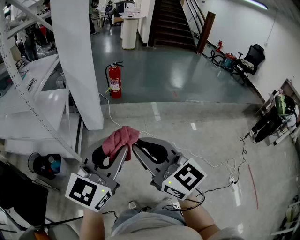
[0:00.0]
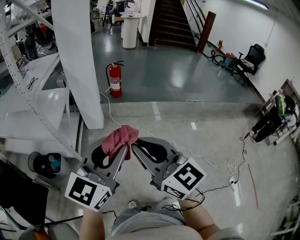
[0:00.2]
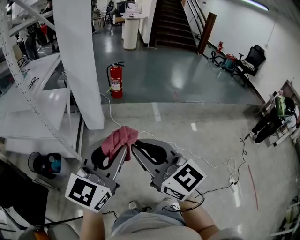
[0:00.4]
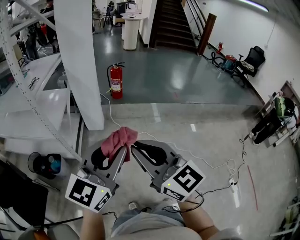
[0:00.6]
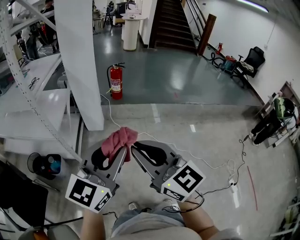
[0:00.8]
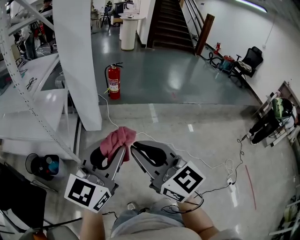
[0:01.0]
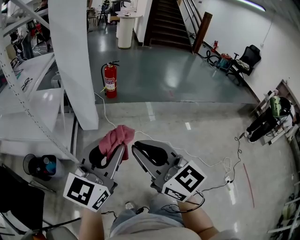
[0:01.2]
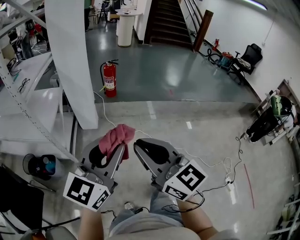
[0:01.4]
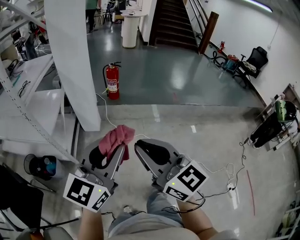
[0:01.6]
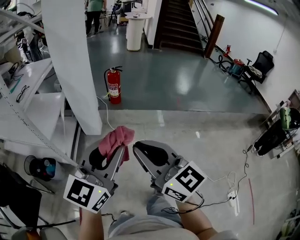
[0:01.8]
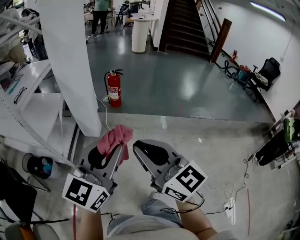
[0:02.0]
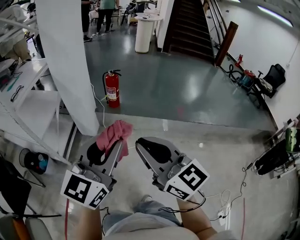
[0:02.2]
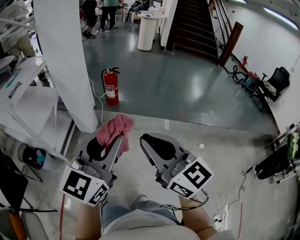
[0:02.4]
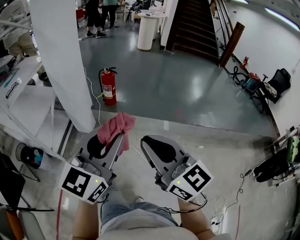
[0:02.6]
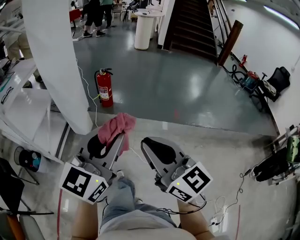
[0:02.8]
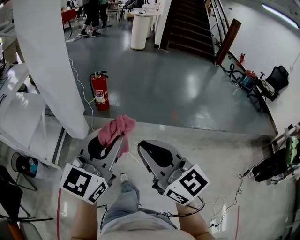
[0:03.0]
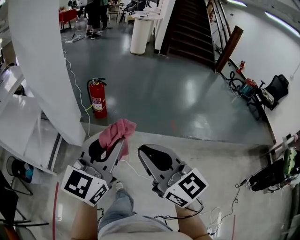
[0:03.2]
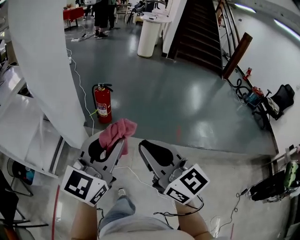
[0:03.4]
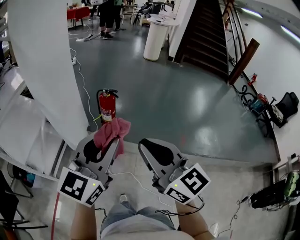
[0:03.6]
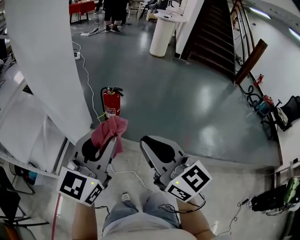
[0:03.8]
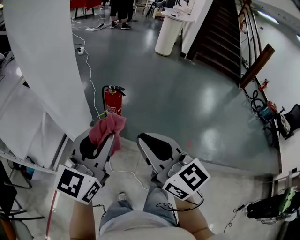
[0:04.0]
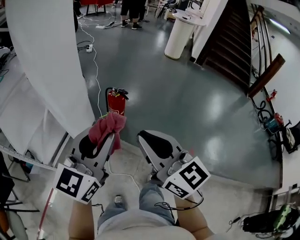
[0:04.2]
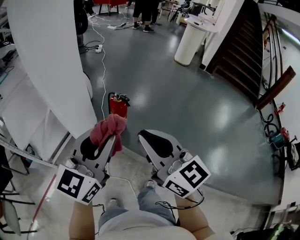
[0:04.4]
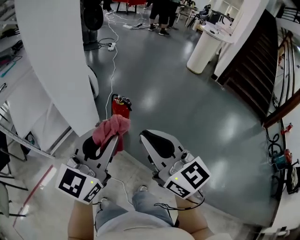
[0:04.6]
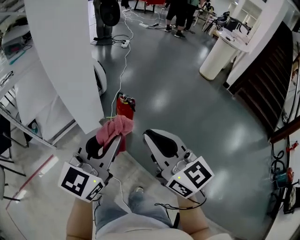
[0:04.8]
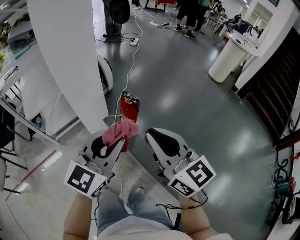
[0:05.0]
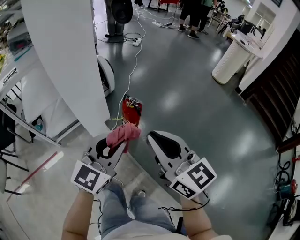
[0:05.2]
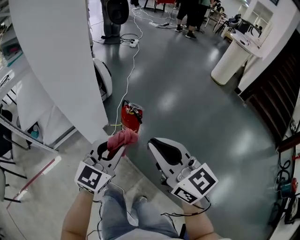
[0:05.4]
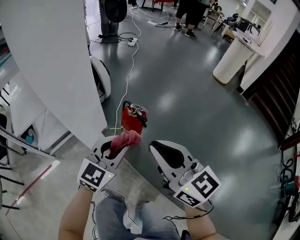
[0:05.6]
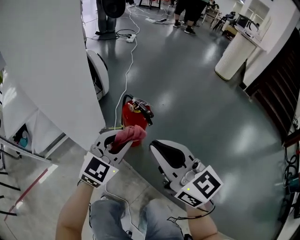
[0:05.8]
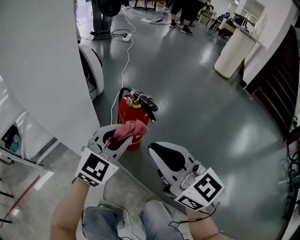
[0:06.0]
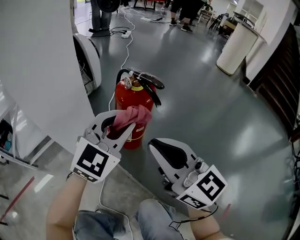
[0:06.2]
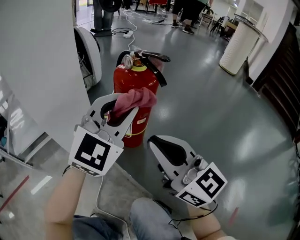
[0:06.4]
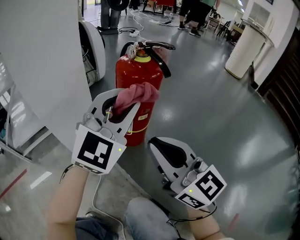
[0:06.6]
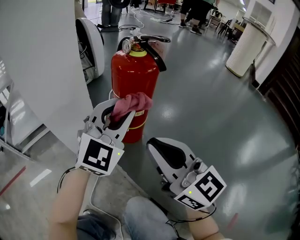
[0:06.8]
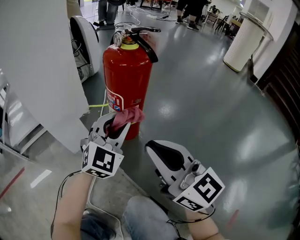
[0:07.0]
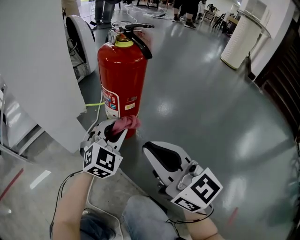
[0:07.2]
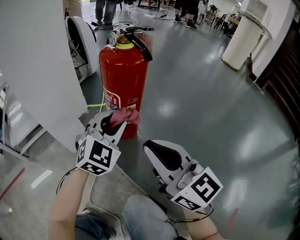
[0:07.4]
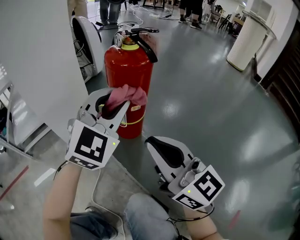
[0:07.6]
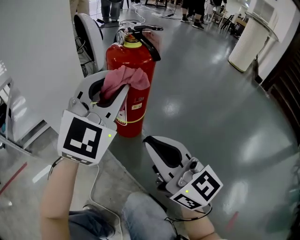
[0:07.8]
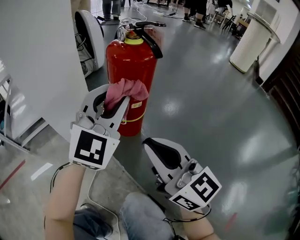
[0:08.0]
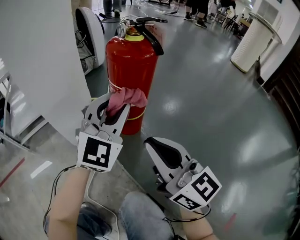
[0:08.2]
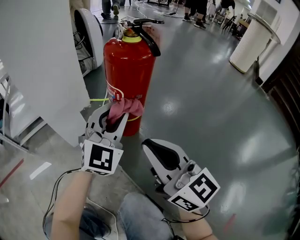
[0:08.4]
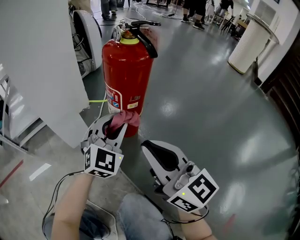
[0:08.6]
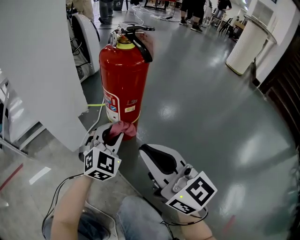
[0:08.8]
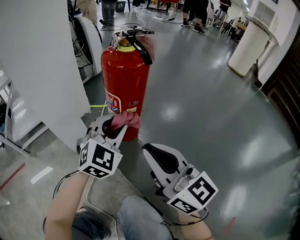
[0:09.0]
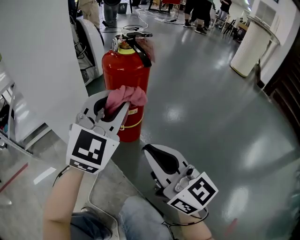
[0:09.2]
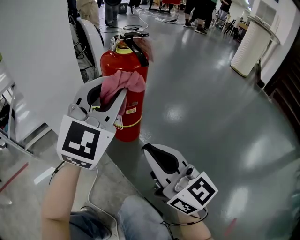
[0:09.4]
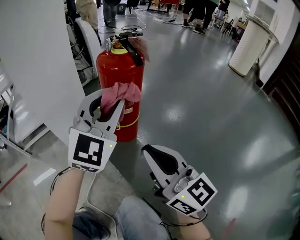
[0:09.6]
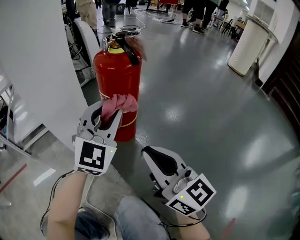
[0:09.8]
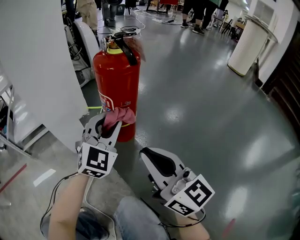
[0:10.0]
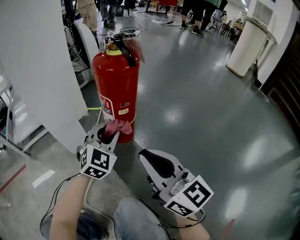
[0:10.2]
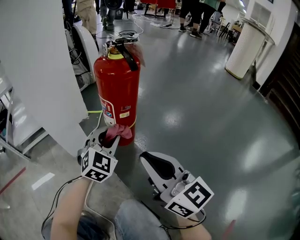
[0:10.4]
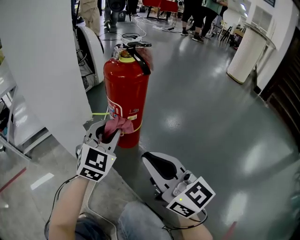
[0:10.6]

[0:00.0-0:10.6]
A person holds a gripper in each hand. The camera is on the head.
0:00.0 to 0:01.6: Both grippers move forward, approximately 5 cm.
0:01.6 to 0:03.0: The two grippers go about 35 cm to the right and forward.
0:03.0 to 0:04.6: The two grippers travel together, approximately 40 cm. The left gripper turns by approximately 30 degrees, while the right gripper rotates approximately 30 degrees.
0:04.6 to 0:06.0: The two grippers go roughly 40 cm downward and forward. The left gripper swivels approximately 30 degrees.
0:06.0 to 0:07.6: The right gripper shifts some 20 cm downward, while the left gripper travels downward by roughly 10 cm, and turns by roughly 20 degrees.
0:07.6 to 0:09.0: The left gripper moves up and down over about 20 cm, changing direction 2 times.
0:09.0 to 0:10.6: The left gripper goes up and down, approximately 20 cm each way, reversing 2 times.

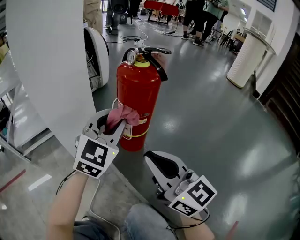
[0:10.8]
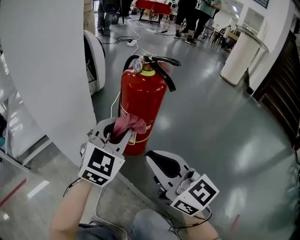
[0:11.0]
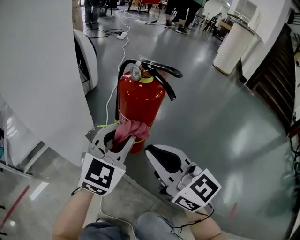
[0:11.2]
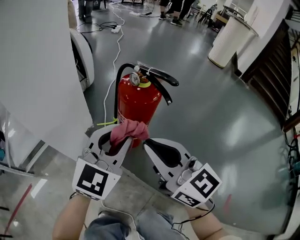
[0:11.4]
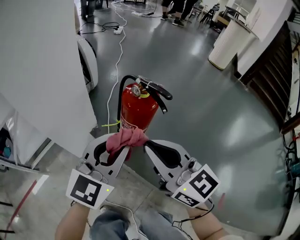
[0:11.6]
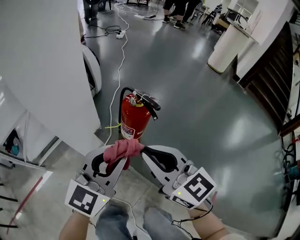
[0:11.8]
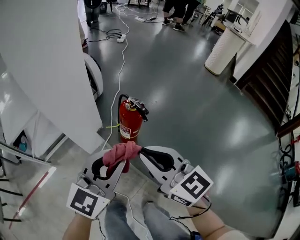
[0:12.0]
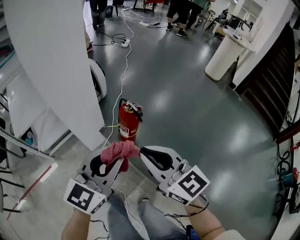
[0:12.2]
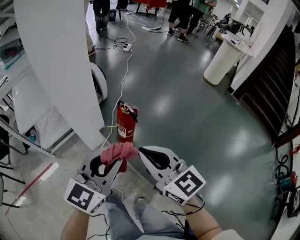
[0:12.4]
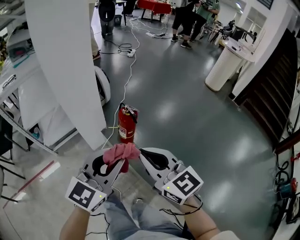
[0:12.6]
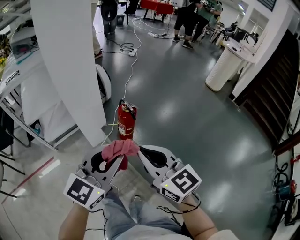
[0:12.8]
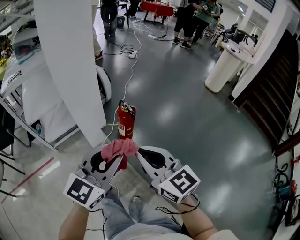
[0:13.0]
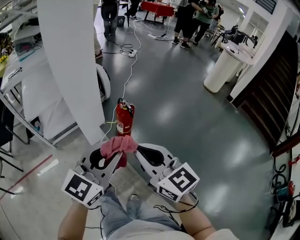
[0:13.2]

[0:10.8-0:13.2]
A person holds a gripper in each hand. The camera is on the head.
0:10.8 to 0:12.0: The left gripper shifts about 35 cm upward and backward, and changes its angle by some 30 degrees; the right gripper shifts some 30 cm upward.
0:12.0 to 0:13.2: Both grippers move upward and backward, approximately 20 cm.

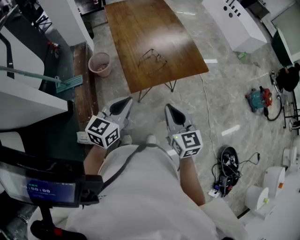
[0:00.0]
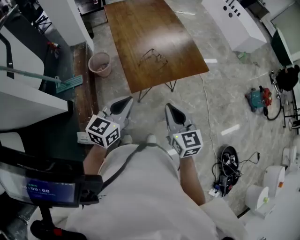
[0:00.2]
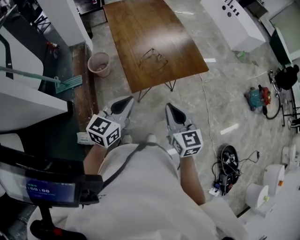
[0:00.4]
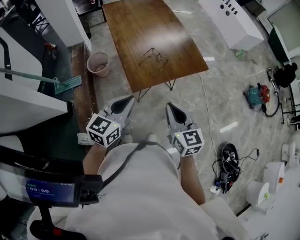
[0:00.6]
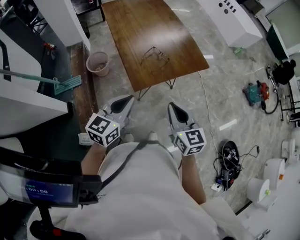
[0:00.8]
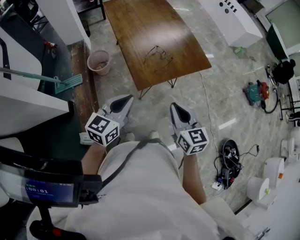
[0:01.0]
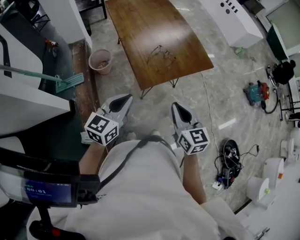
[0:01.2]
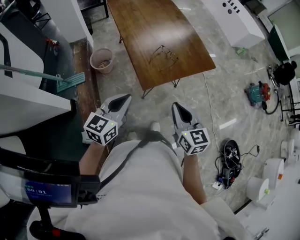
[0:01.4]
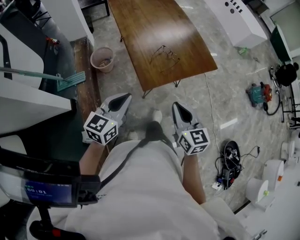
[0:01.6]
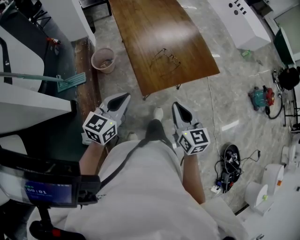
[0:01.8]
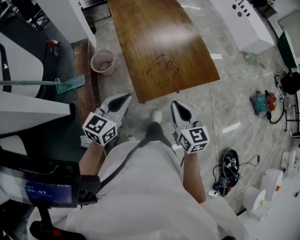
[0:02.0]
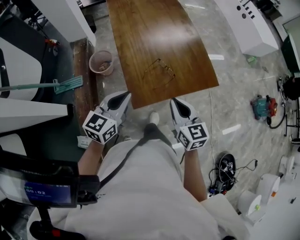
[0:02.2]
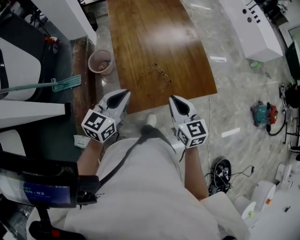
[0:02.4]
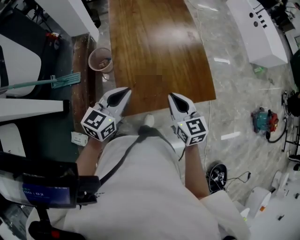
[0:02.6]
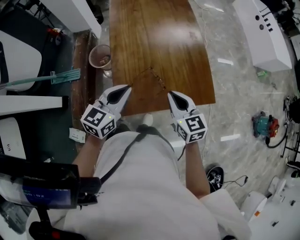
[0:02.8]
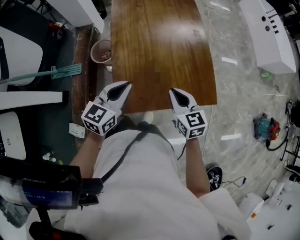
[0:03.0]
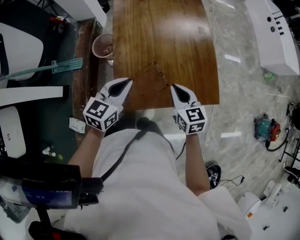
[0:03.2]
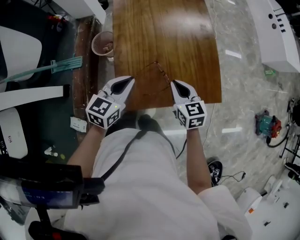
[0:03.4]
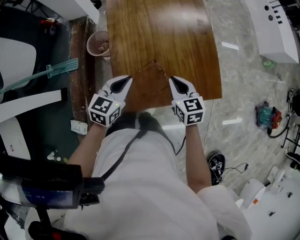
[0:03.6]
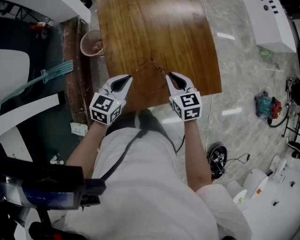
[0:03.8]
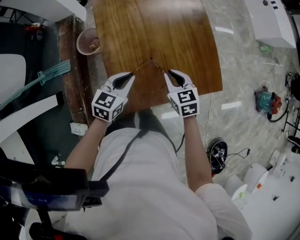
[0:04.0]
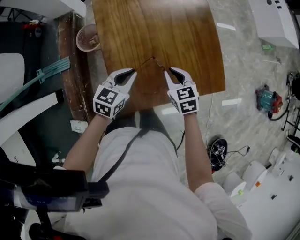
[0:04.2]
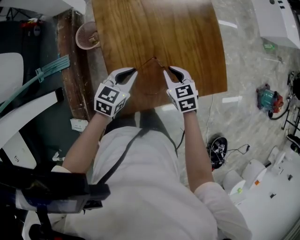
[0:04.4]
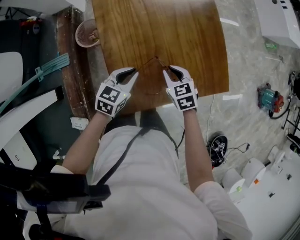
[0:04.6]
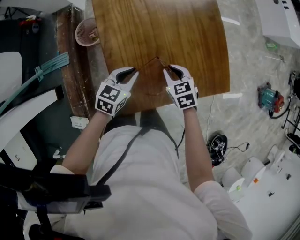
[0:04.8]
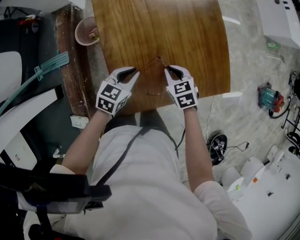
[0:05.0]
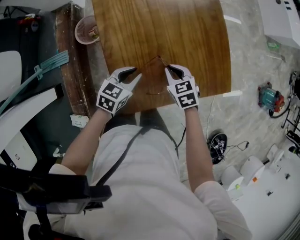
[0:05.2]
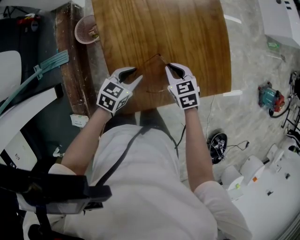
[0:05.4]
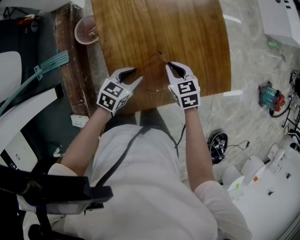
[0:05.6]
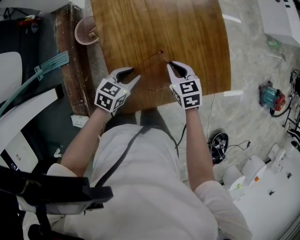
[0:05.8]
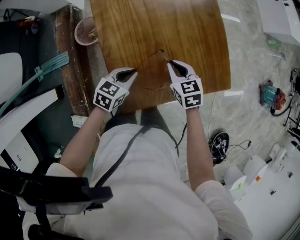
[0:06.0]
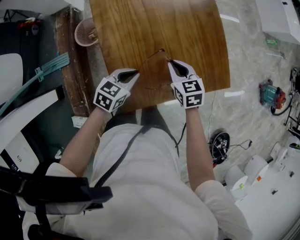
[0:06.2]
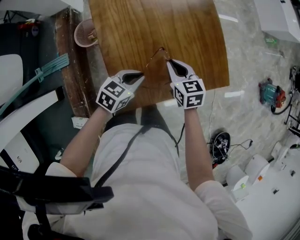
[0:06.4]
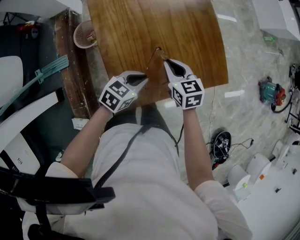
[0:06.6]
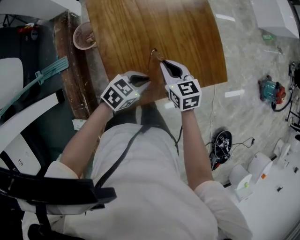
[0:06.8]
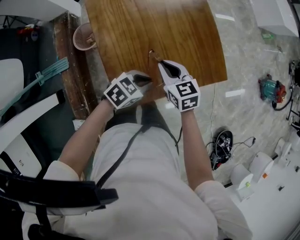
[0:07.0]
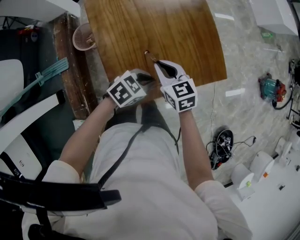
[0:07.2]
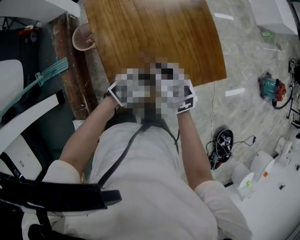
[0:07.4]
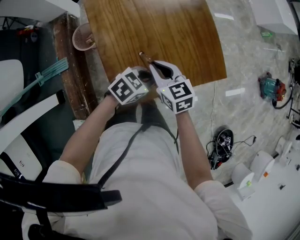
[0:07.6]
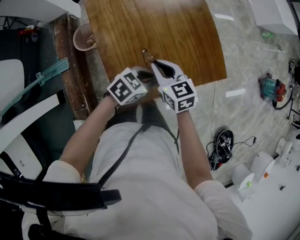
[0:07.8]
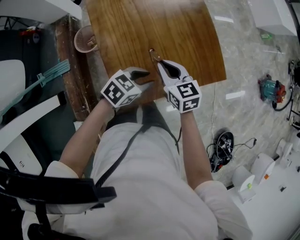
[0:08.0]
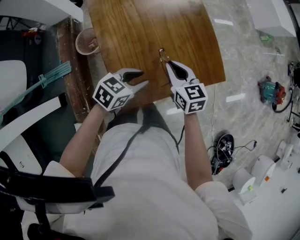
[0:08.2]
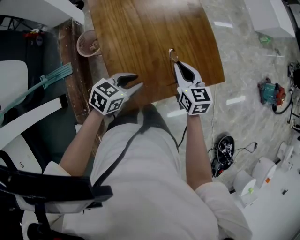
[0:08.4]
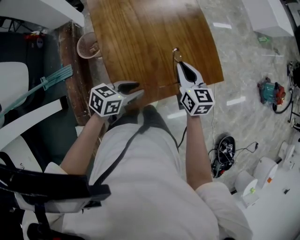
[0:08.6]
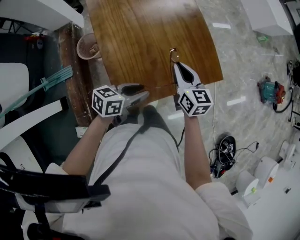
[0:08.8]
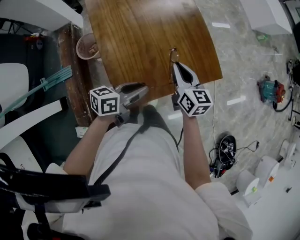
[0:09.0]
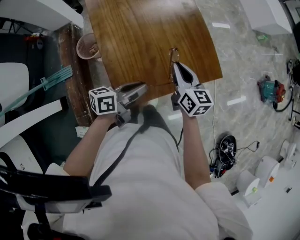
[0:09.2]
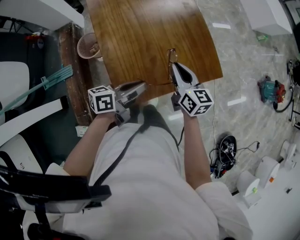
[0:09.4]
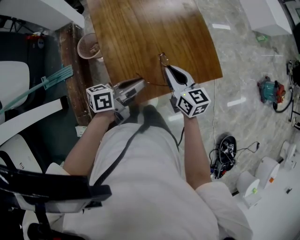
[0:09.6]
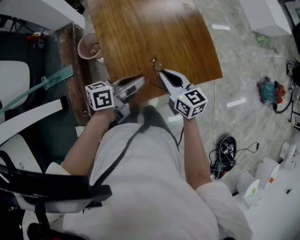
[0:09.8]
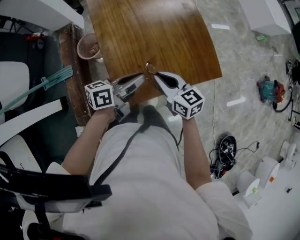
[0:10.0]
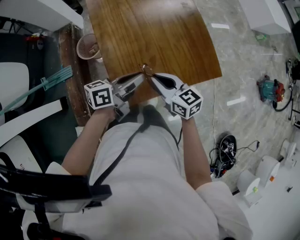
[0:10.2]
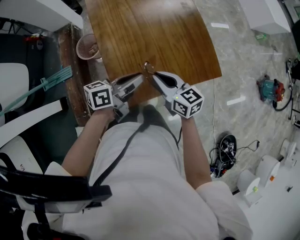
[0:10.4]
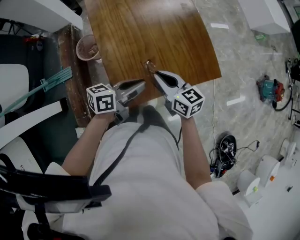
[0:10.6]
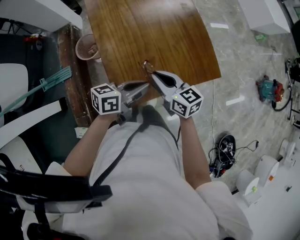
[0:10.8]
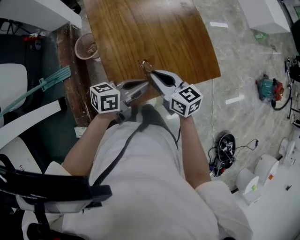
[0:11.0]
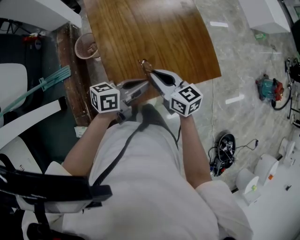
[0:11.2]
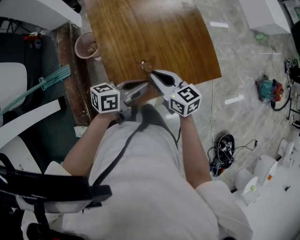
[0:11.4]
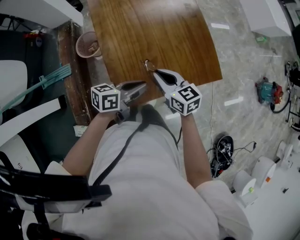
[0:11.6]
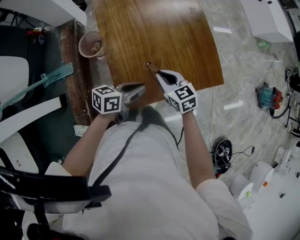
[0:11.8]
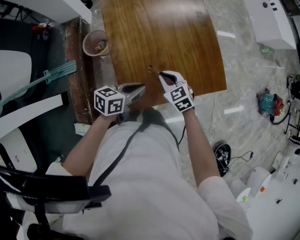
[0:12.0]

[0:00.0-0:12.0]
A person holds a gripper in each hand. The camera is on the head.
0:00.0 to 0:01.6: Both grippers move to the left, some 10 cm.
0:01.6 to 0:03.0: The two grippers go approximately 35 cm forward and to the right. The right gripper turns by about 20 degrees.
0:03.0 to 0:04.4: The grippers both shift downward and forward by approximately 20 cm. The right gripper rotates approximately 20 degrees.
0:04.4 to 0:06.0: The left gripper opens and closes again.
0:06.0 to 0:07.6: The left gripper is displaced to the right by approximately 10 cm, and turns by roughly 30 degrees, while the right gripper travels upward and backward by about 10 cm.
0:07.6 to 0:09.0: The right gripper is displaced to the right by some 10 cm, and turns by about 20 degrees. Meanwhile the left gripper heads upward, covering approximately 5 cm, and rotates some 40 degrees.
0:09.0 to 0:10.4: The right gripper moves backward and to the left, some 10 cm, and rotates approximately 20 degrees.
0:10.4 to 0:12.0: The grippers both shift downward by approximately 10 cm. The right gripper turns by about 40 degrees.
